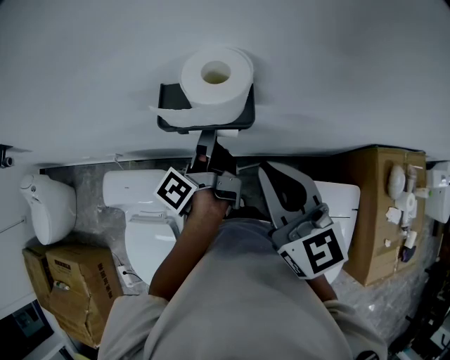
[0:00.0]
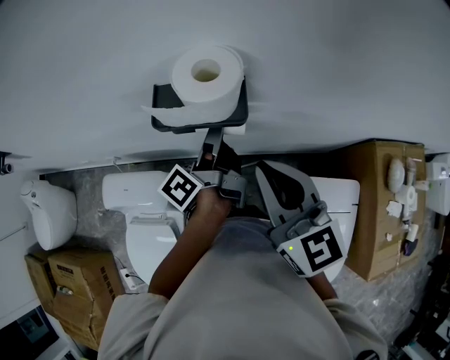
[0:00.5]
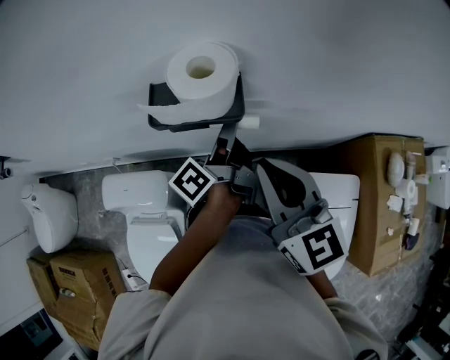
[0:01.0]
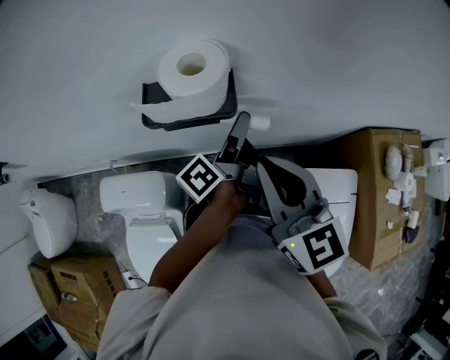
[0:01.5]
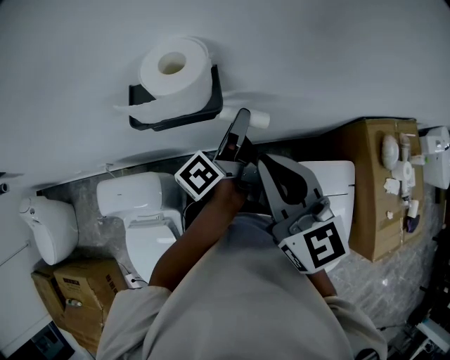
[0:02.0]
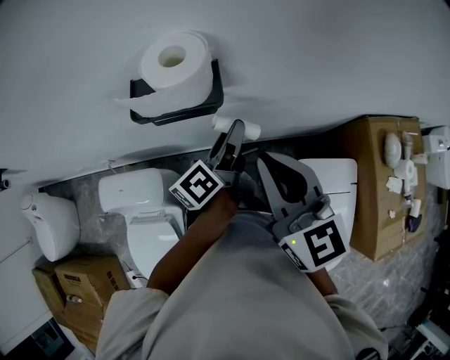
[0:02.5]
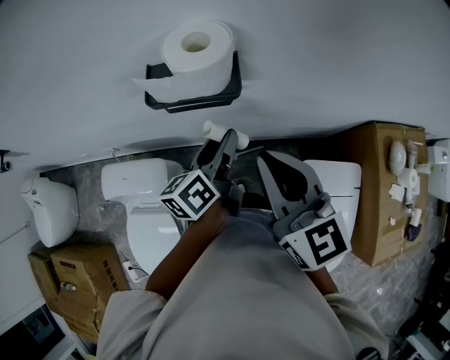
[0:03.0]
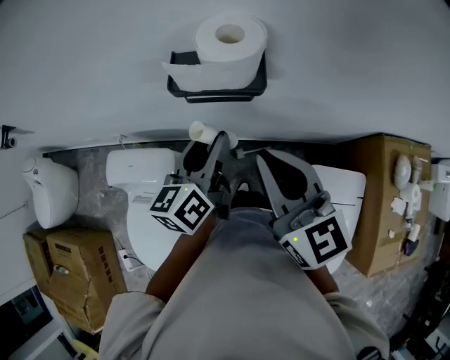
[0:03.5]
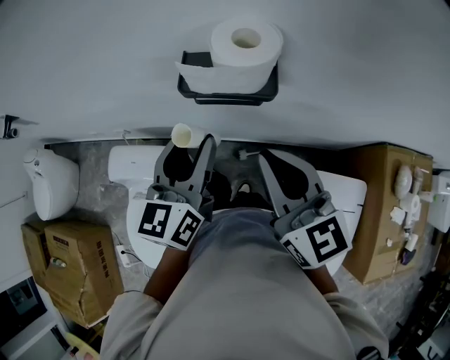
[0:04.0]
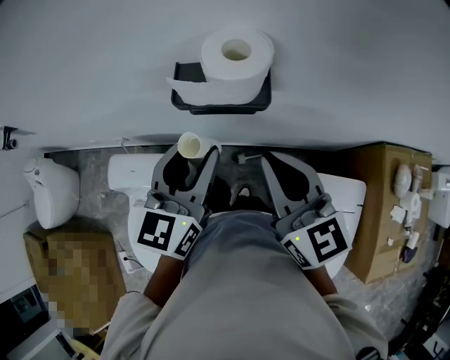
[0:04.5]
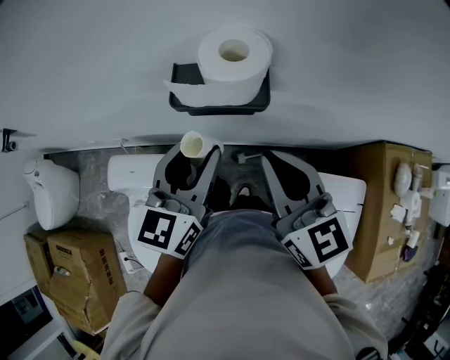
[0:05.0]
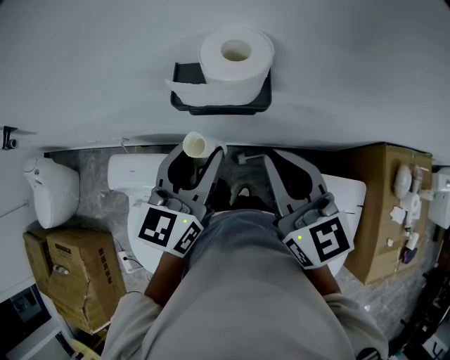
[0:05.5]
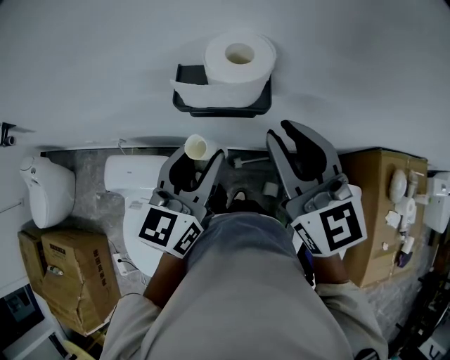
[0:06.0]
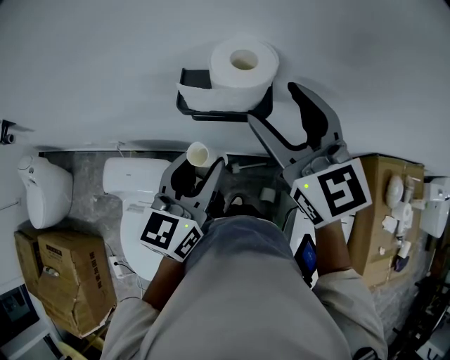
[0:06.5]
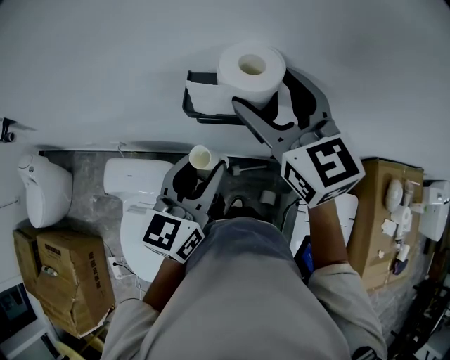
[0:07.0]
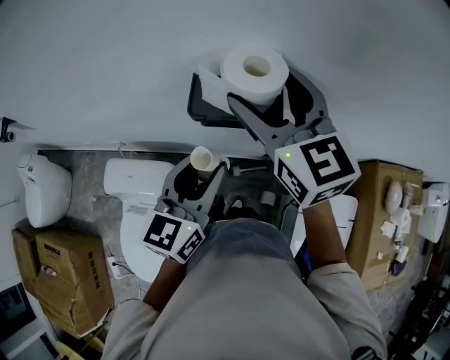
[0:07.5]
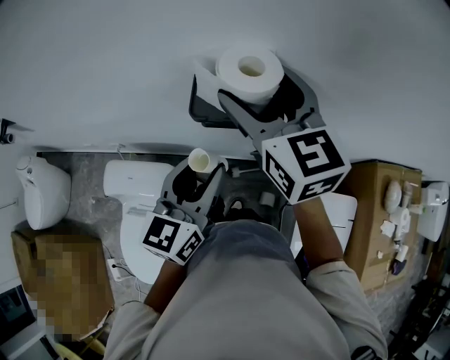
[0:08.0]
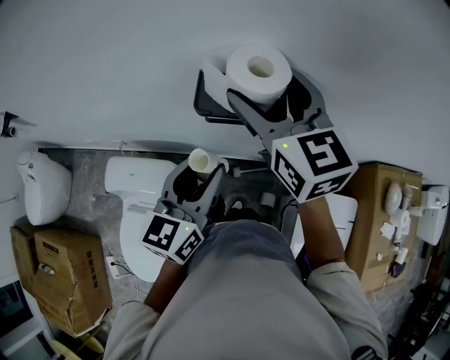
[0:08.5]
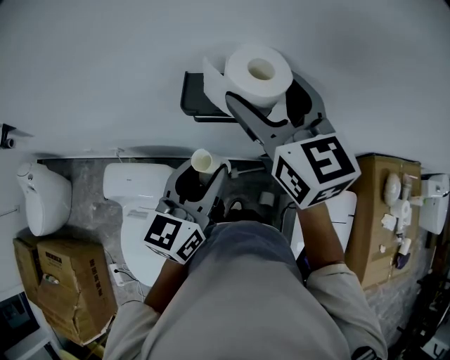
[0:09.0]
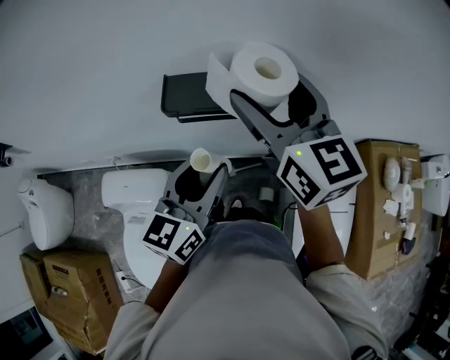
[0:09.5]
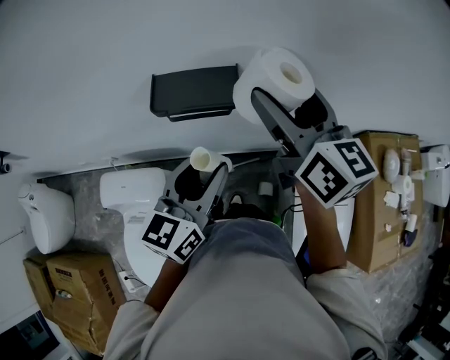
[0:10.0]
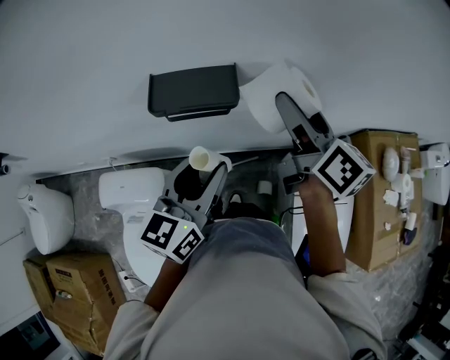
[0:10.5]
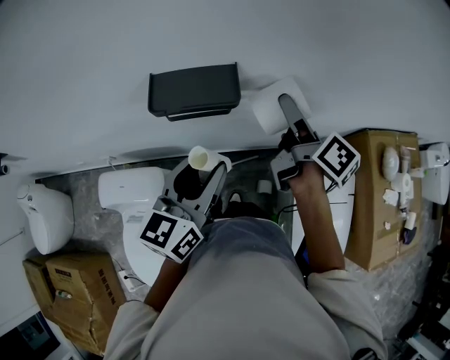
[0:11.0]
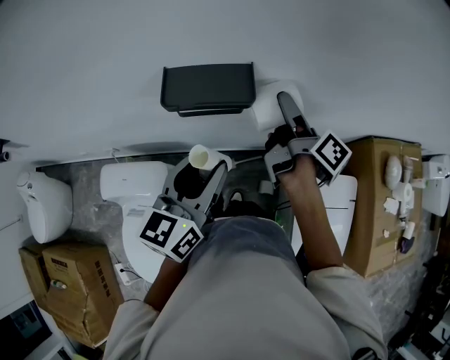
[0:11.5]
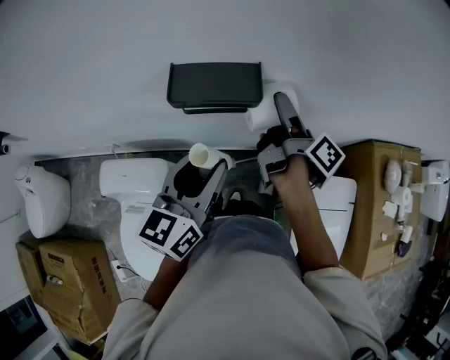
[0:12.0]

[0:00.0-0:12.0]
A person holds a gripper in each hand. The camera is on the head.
0:00.0 to 0:02.0: The left gripper travels to the right by about 10 cm.
0:02.0 to 0:04.0: The left gripper travels to the left and backward by approximately 20 cm, and rotates around the line of its fingers by some 60 degrees, clockwise from behind. Meanwhile the right gripper shifts about 5 cm to the left.
0:04.0 to 0:06.0: The right gripper ends up some 5 cm from where it was.
0:06.0 to 0:08.0: The right gripper is displaced forward and to the left by approximately 10 cm, and opens.
0:08.0 to 0:10.0: The left gripper heads to the right, covering about 5 cm, while the right gripper travels to the right by about 15 cm, and swivels about 20 degrees.
0:10.0 to 0:12.0: The right gripper moves downward, roughly 15 cm, and rotates around the line of its fingers by some 70 degrees, clockwise from behind.

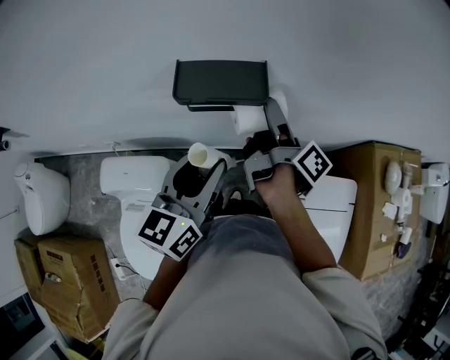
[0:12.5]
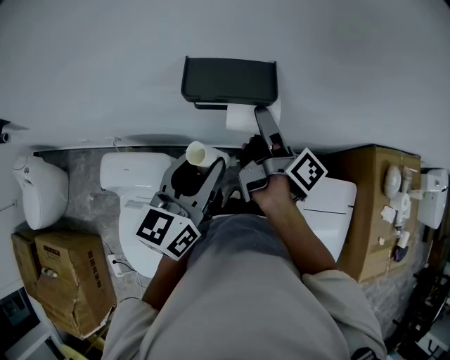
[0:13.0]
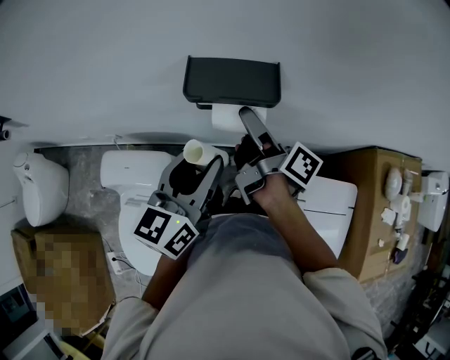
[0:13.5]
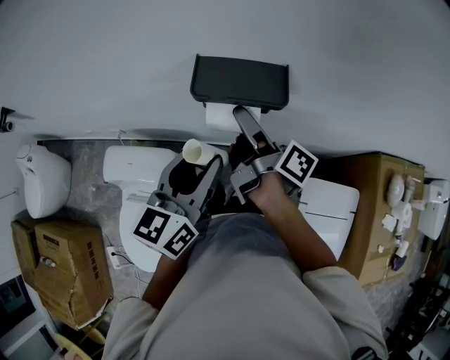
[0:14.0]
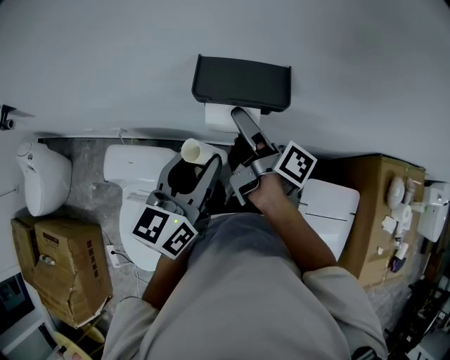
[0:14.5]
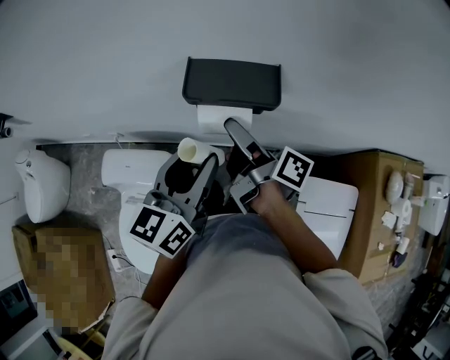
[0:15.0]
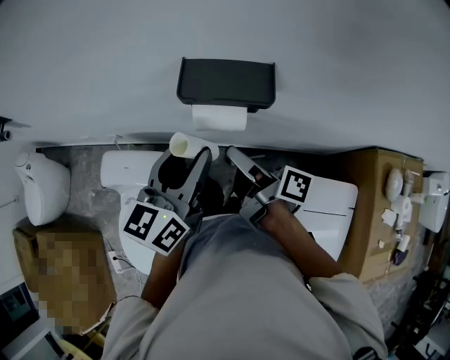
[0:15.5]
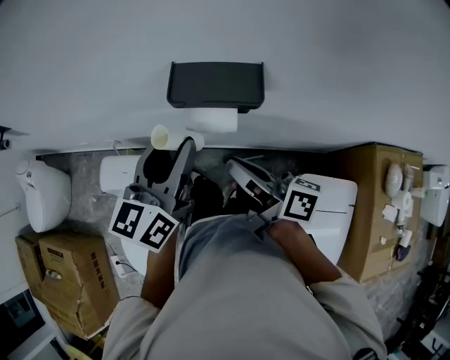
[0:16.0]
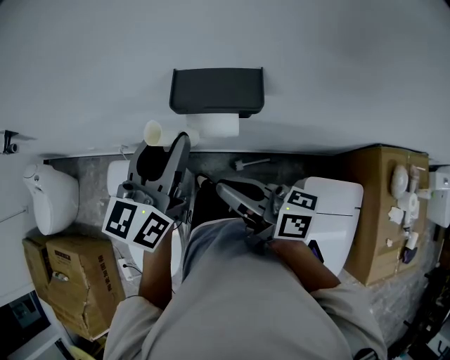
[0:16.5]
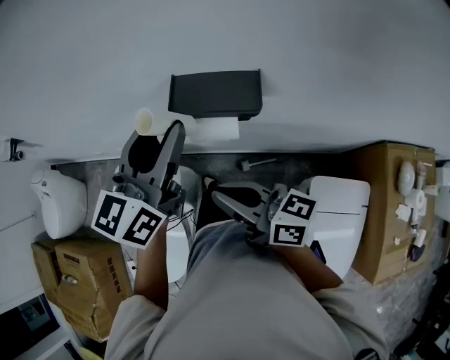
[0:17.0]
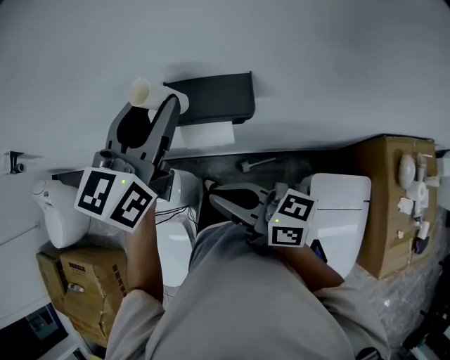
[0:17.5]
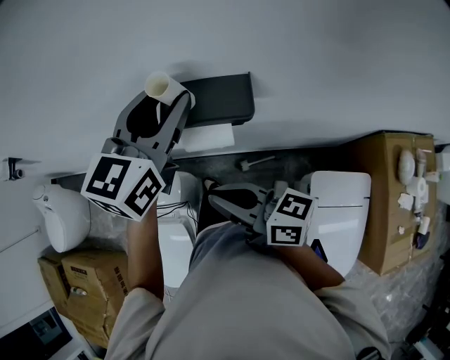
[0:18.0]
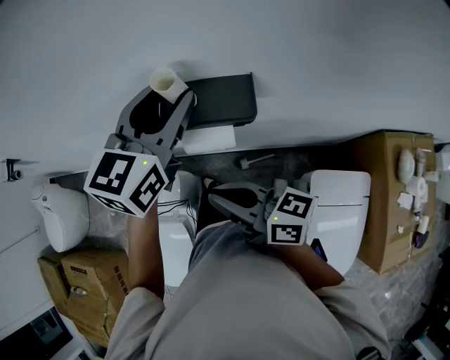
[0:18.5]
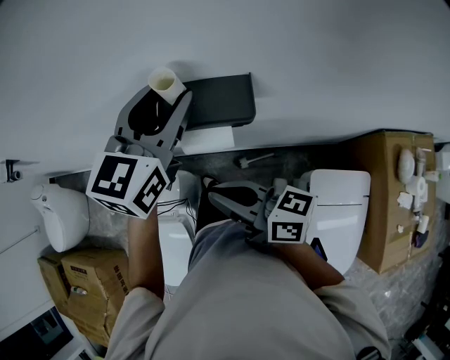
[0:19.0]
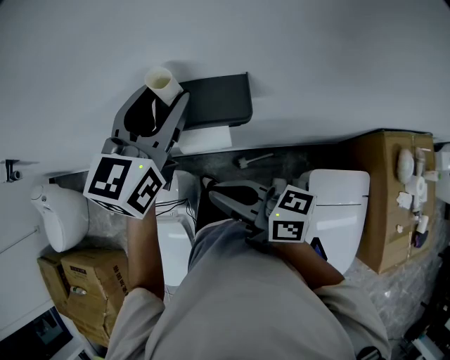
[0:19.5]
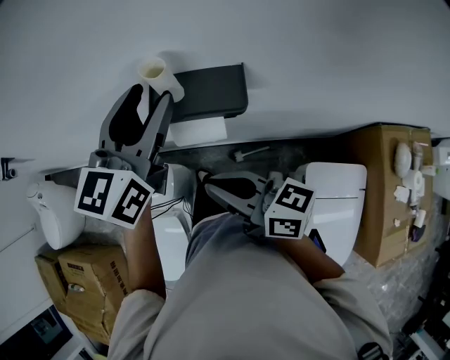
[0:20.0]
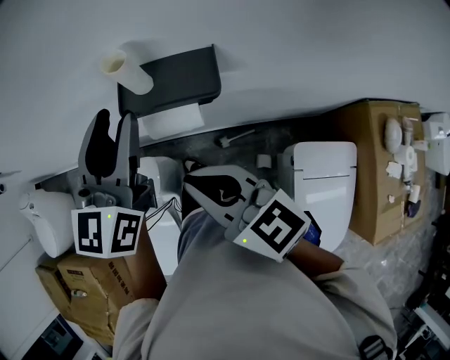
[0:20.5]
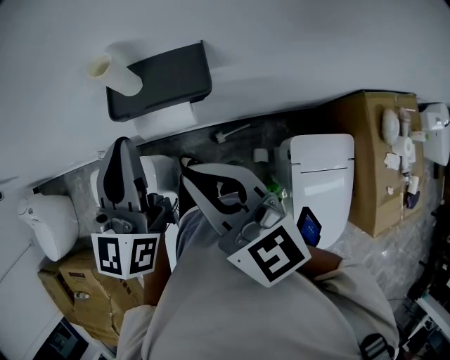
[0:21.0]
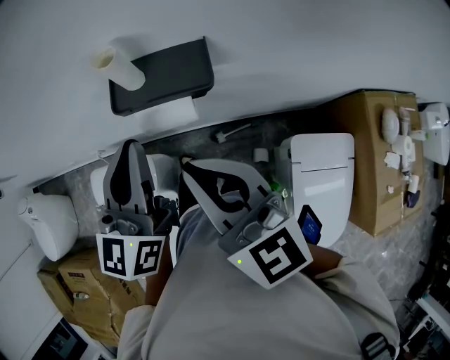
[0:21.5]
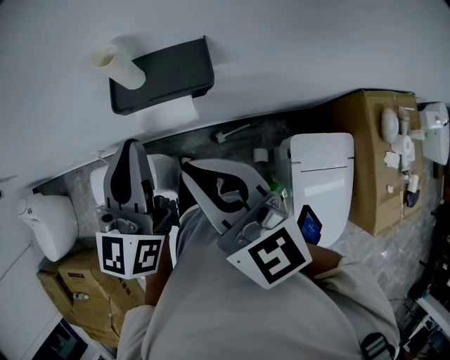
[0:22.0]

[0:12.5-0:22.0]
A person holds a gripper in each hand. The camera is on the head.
0:12.5 to 0:14.5: The left gripper is displaced to the left by about 5 cm. Meanwhile the right gripper is displaced to the left by approximately 10 cm, and swivels about 20 degrees.
0:14.5 to 0:16.5: The left gripper goes roughly 5 cm upward, while the right gripper goes approximately 15 cm backward, turns by roughly 40 degrees, and closes.
0:16.5 to 0:18.0: The left gripper travels forward and to the right by some 10 cm.
0:18.0 to 0:20.0: The grippers make only small movements.
0:20.0 to 0:22.0: The left gripper shifts about 10 cm backward, and closes; the right gripper moves upward, approximately 10 cm, and changes its angle by approximately 50 degrees.

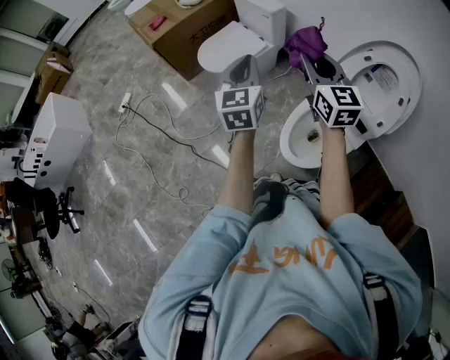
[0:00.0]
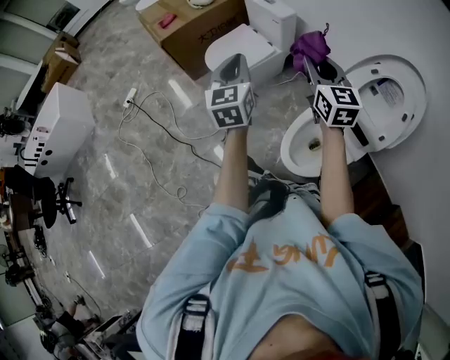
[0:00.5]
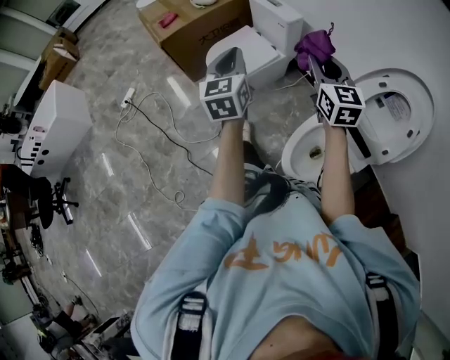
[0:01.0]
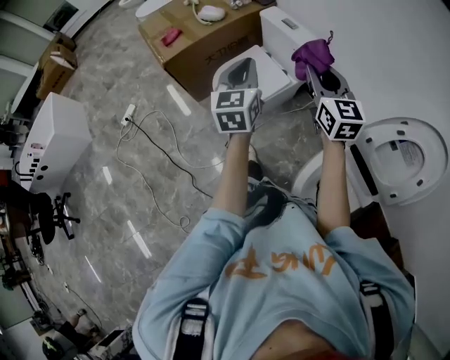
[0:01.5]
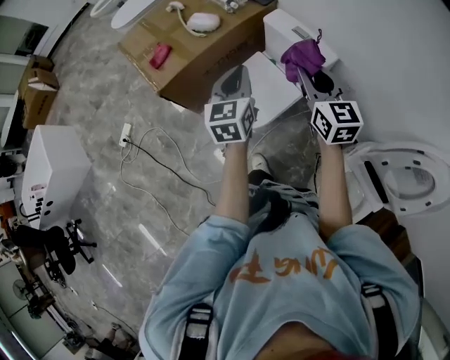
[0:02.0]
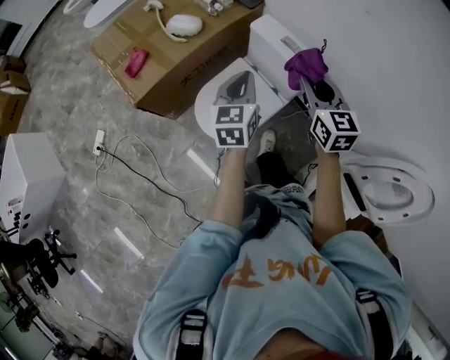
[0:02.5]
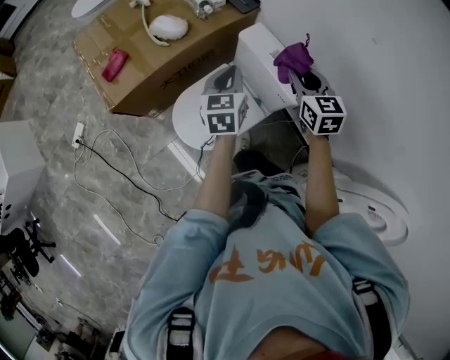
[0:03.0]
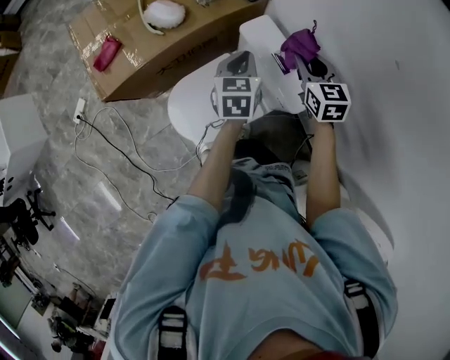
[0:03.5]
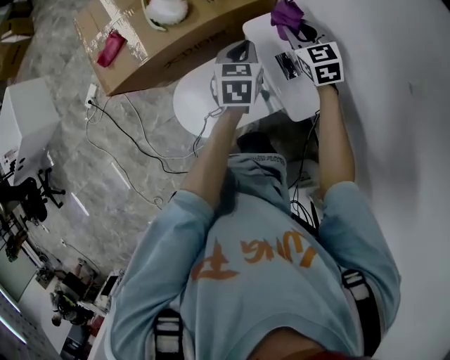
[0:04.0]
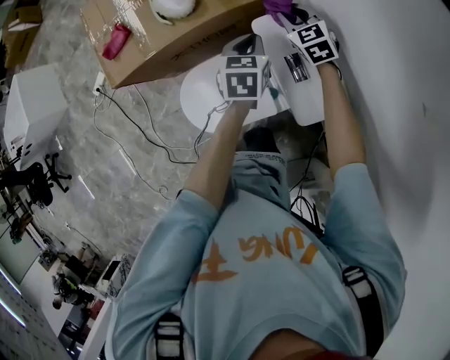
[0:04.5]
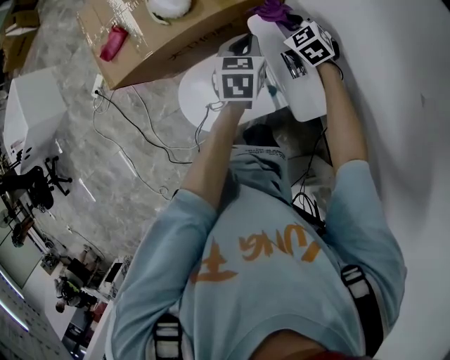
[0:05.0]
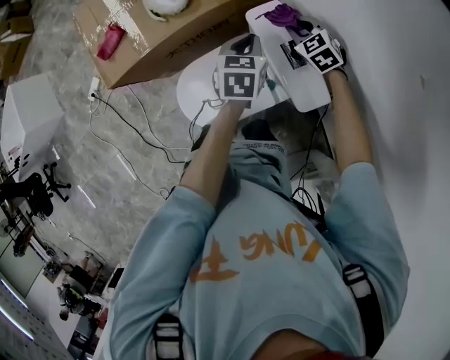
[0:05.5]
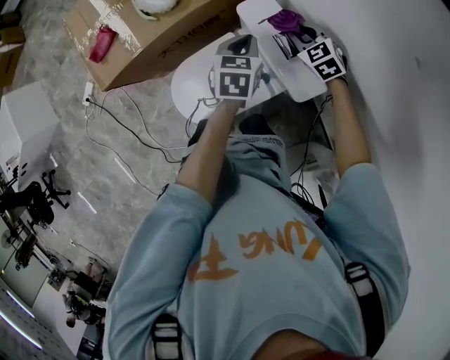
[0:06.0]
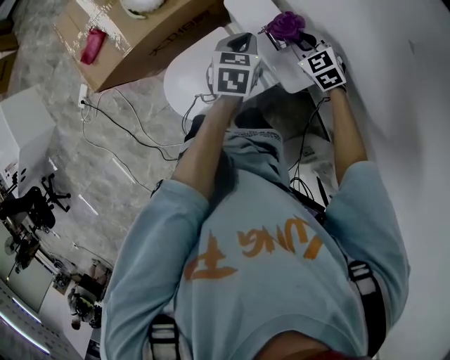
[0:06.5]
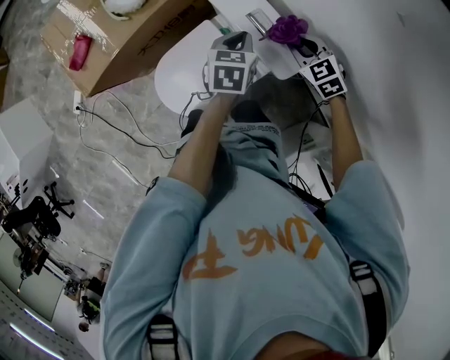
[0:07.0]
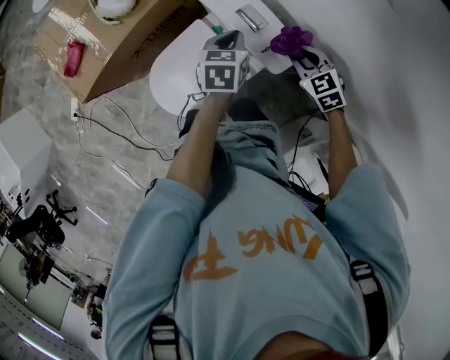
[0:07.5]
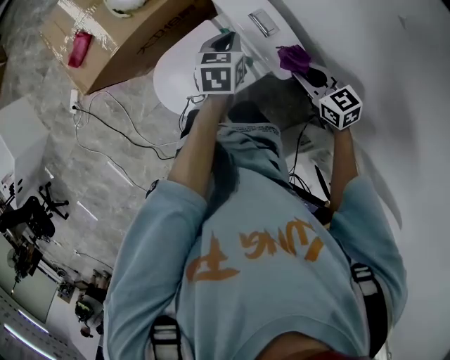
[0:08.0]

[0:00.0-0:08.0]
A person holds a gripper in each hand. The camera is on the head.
0:00.0 to 0:02.0: The two grippers travel together, forward, approximately 50 cm.
0:02.0 to 0:04.0: The left gripper moves forward, downward and to the right, roughly 40 cm, and rotates about 30 degrees. Meanwhile the right gripper travels forward and downward by roughly 50 cm, and swivels approximately 30 degrees.
0:04.0 to 0:06.0: The right gripper travels downward and backward by roughly 10 cm.
0:06.0 to 0:08.0: The right gripper moves backward, approximately 20 cm, and changes its angle by some 30 degrees.
